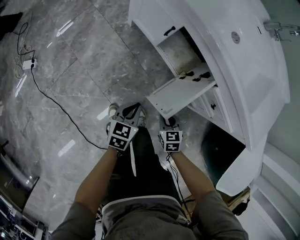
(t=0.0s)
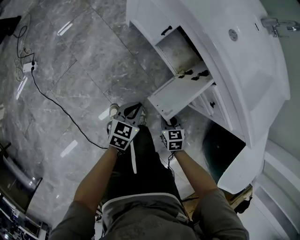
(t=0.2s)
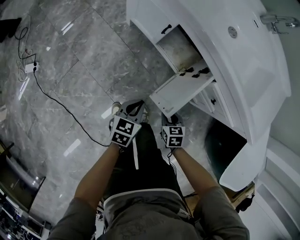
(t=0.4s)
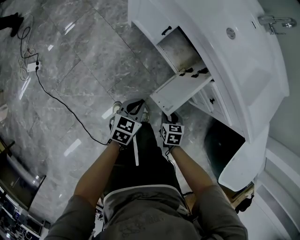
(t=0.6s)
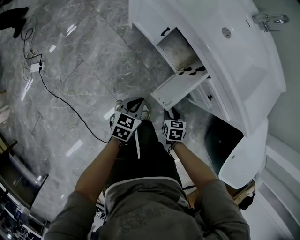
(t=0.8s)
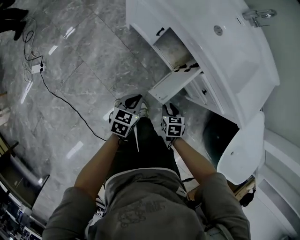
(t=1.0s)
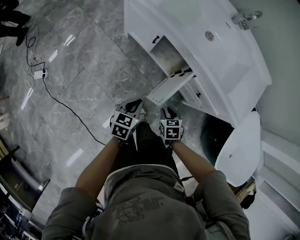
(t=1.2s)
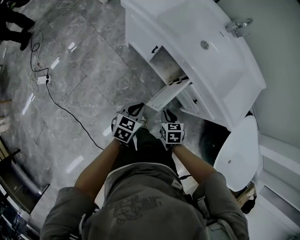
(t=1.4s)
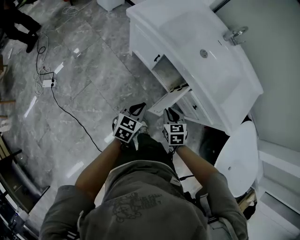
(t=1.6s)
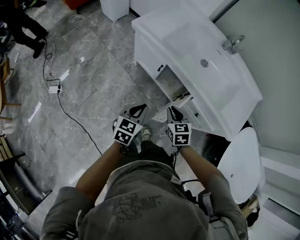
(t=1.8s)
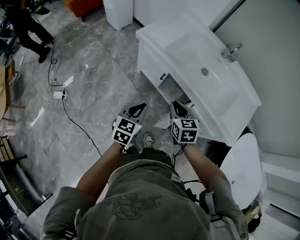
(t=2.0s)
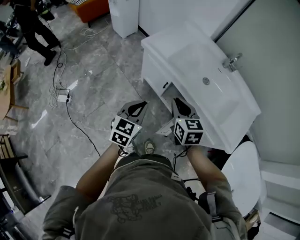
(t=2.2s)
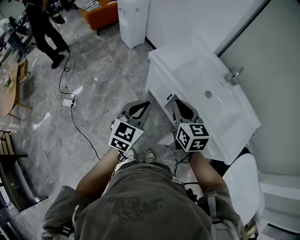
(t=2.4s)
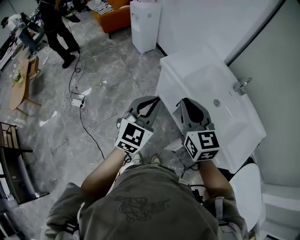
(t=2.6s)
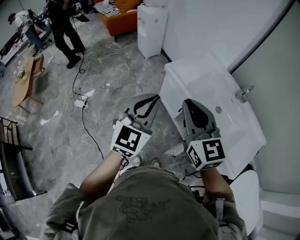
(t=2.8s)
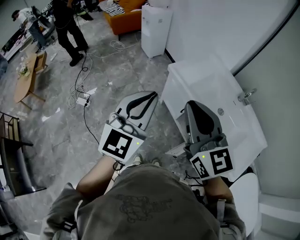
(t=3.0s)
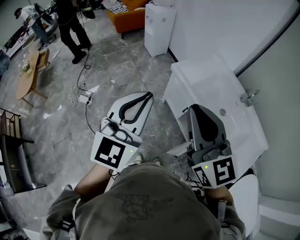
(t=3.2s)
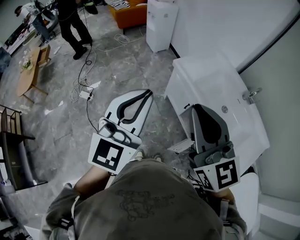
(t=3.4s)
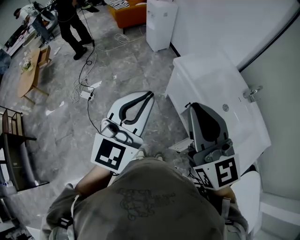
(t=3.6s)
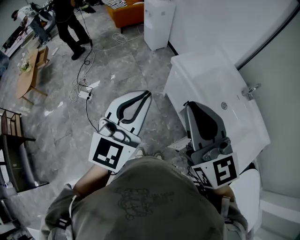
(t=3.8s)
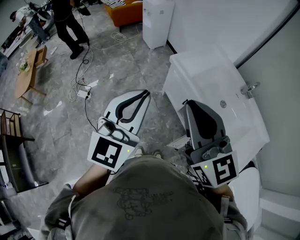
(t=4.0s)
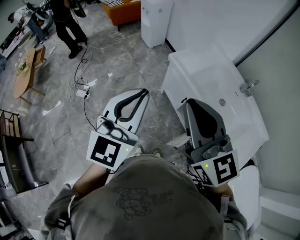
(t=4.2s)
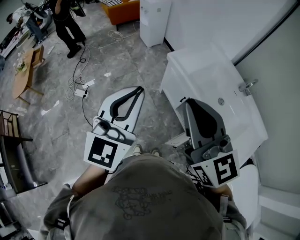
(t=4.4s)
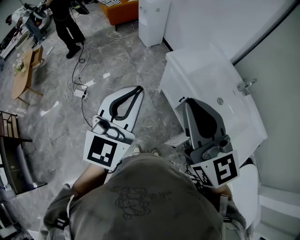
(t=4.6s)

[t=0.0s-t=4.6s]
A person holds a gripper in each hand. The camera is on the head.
t=0.0s to t=1.6s: The grippers both shift upward by roughly 25 cm.
t=1.6s to t=3.0s: Both grippers travel together upward, approximately 50 cm. The left gripper angles its fingers upward, by roughly 40 degrees; the right gripper tilts its fingers some 50 degrees upward.
t=3.0s to t=4.6s: The grippers move only a little.

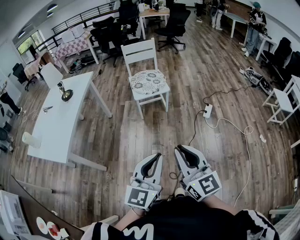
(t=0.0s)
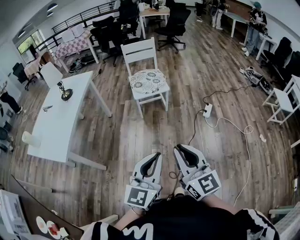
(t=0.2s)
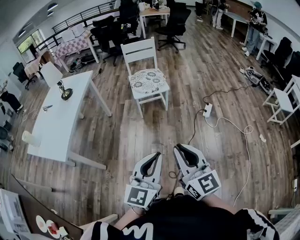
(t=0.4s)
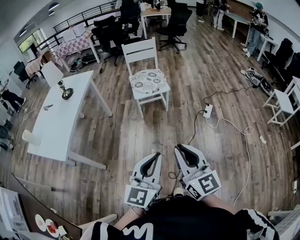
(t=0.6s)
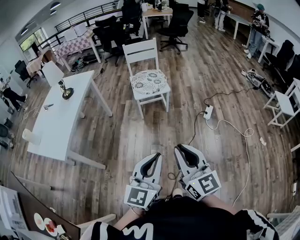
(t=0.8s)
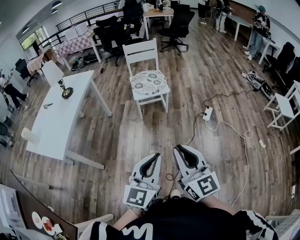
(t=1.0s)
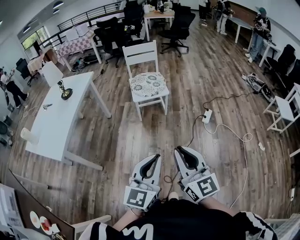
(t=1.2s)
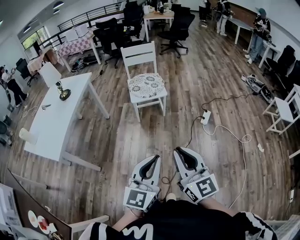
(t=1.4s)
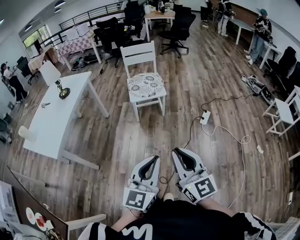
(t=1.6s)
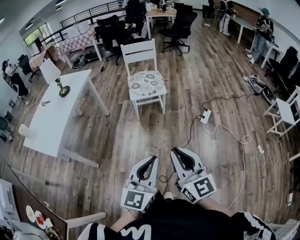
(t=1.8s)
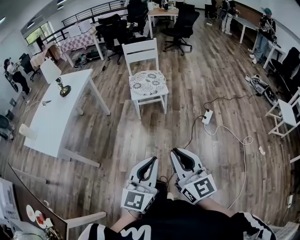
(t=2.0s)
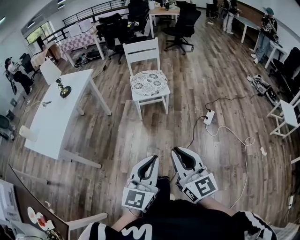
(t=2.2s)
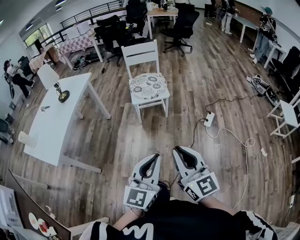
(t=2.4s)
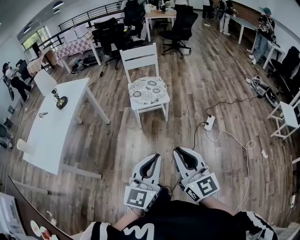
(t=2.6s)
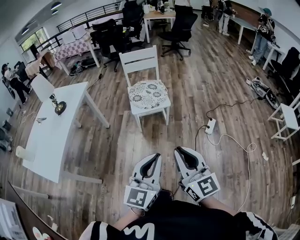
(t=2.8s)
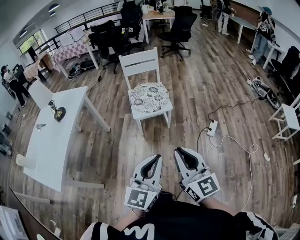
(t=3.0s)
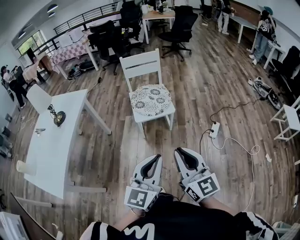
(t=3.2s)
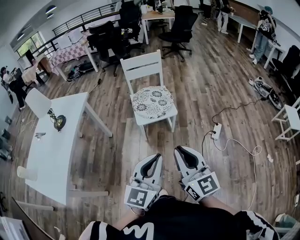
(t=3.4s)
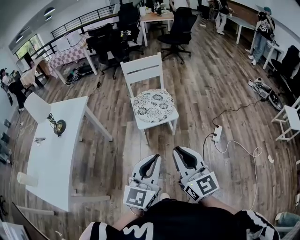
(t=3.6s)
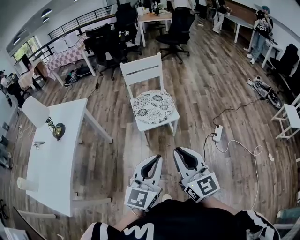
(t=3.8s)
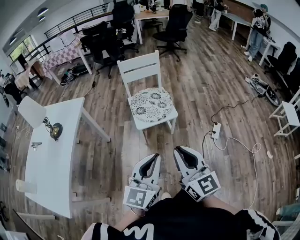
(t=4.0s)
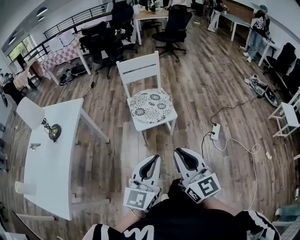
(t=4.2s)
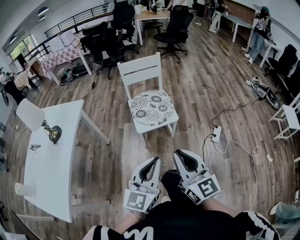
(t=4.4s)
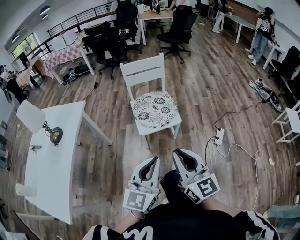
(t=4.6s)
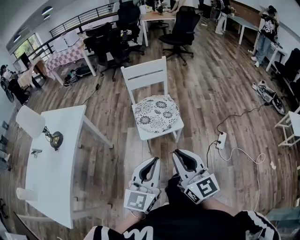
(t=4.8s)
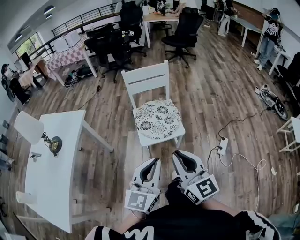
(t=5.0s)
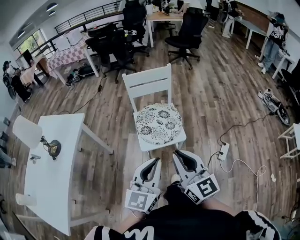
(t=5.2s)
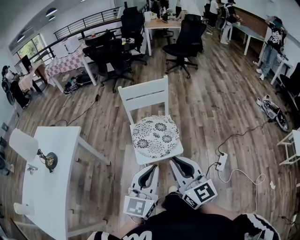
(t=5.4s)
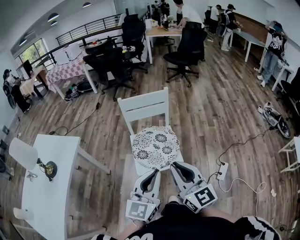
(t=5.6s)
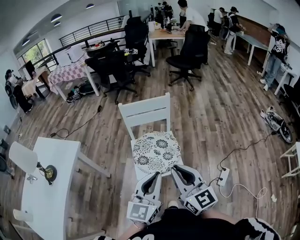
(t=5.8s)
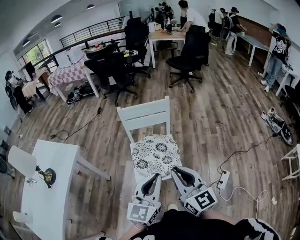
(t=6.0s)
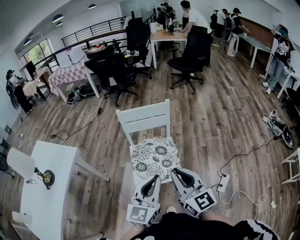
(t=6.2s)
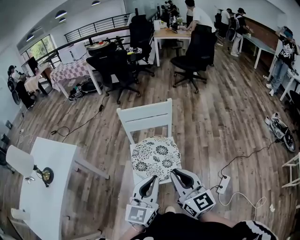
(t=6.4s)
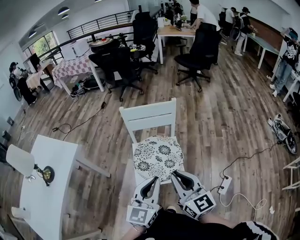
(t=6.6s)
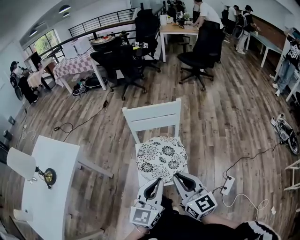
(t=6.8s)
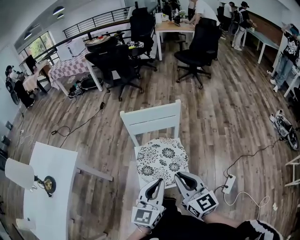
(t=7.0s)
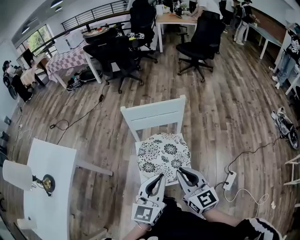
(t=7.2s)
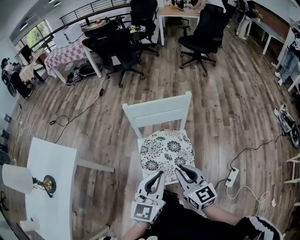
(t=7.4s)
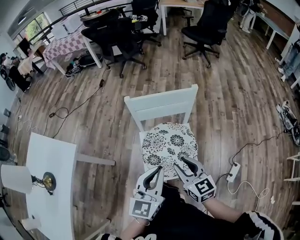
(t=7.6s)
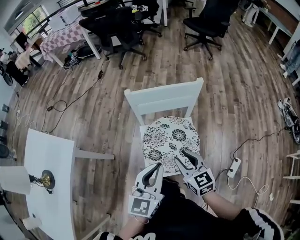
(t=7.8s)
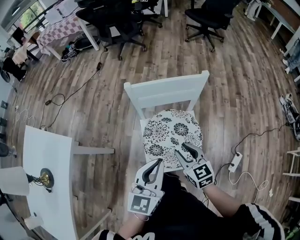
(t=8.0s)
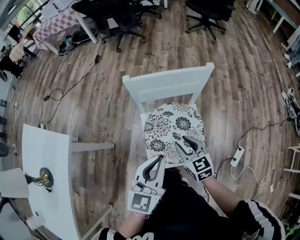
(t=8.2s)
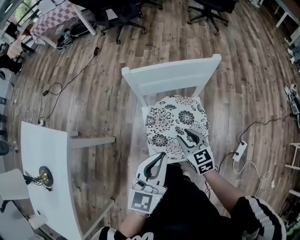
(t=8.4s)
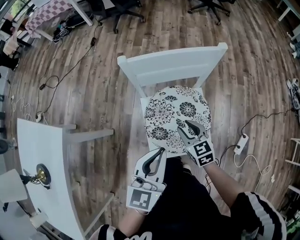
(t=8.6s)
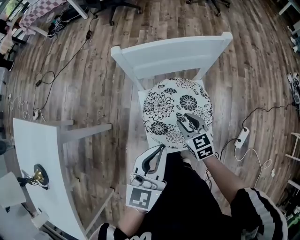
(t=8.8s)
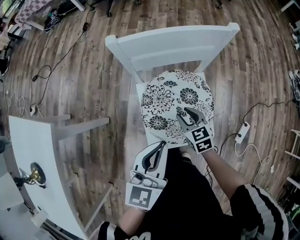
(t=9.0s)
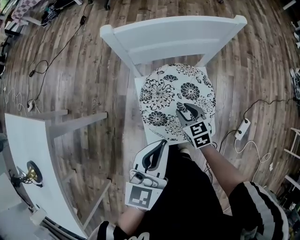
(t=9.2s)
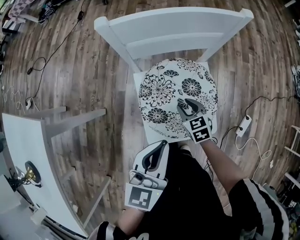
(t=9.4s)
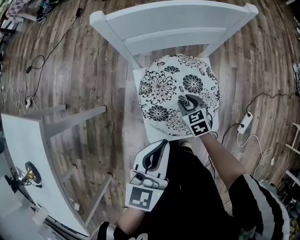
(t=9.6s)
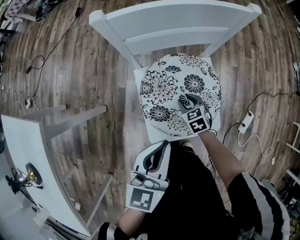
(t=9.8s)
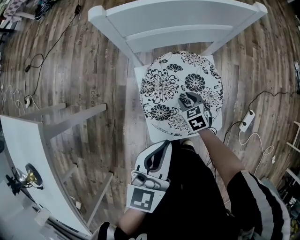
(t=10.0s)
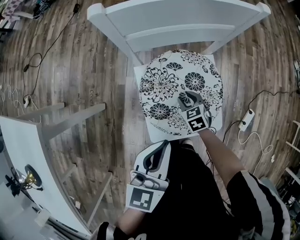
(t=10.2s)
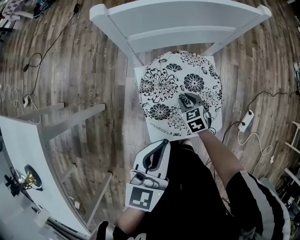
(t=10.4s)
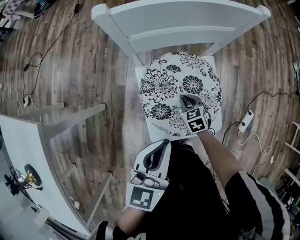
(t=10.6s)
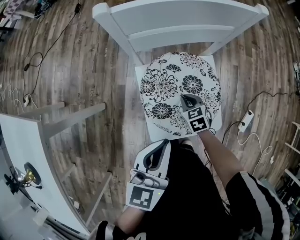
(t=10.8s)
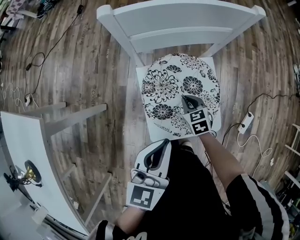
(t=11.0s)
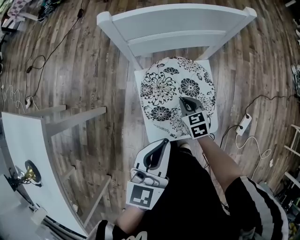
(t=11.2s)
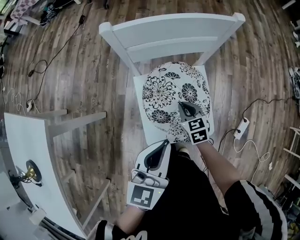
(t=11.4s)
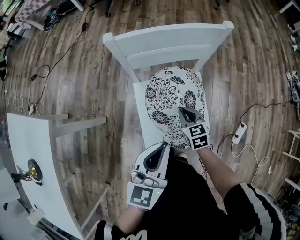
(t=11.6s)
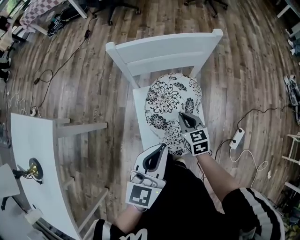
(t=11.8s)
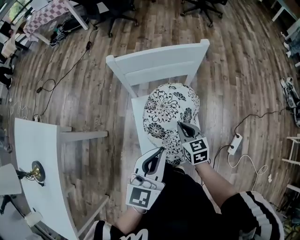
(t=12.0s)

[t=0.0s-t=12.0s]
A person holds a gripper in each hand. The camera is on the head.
t=0.0s to t=1.6s: The two grippers go approximately 5 cm to the right.
t=1.6s to t=3.0s: The two grippers go roughly 20 cm forward.
t=3.0s to t=4.4s: The two grippers go some 15 cm forward and to the left.
t=4.4s to t=6.0s: The two grippers go about 30 cm forward.
t=6.0s to t=7.6s: The grippers both shift forward and downward by roughly 20 cm. The right gripper swivels some 20 degrees, and opens its fingers.
t=7.6s to t=9.0s: The left gripper is displaced downward by some 10 cm. The right gripper moves downward, roughly 25 cm, and swivels roughly 20 degrees.
t=9.0s to t=10.4s: The left gripper goes roughly 5 cm downward, while the right gripper shifts about 15 cm downward.
t=10.4s to t=12.0s: The left gripper shifts about 10 cm upward and to the right. Meanwhile the right gripper moves upward, about 20 cm, swivels about 20 degrees, and closes up.

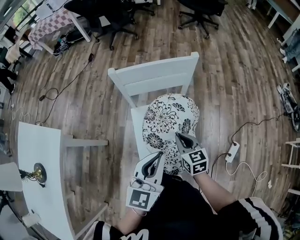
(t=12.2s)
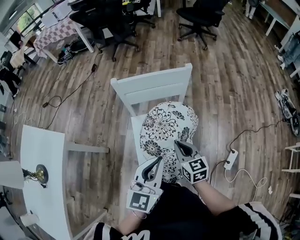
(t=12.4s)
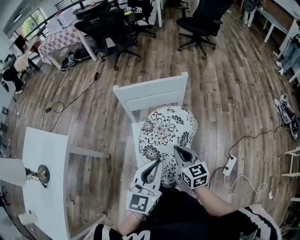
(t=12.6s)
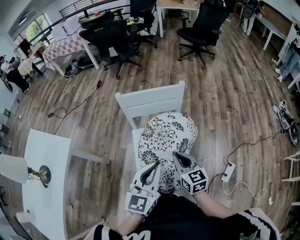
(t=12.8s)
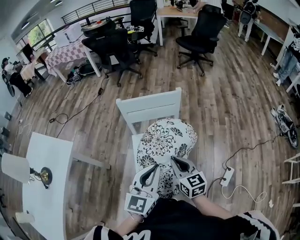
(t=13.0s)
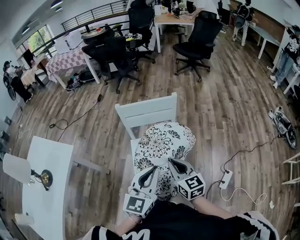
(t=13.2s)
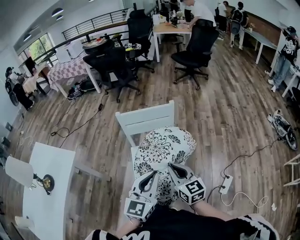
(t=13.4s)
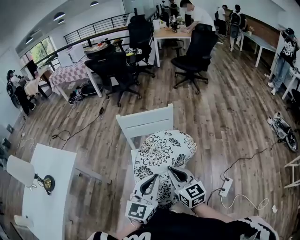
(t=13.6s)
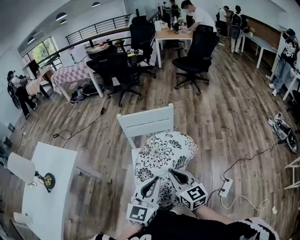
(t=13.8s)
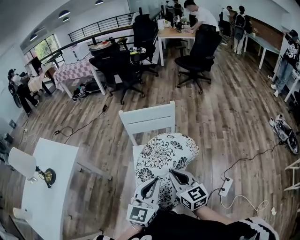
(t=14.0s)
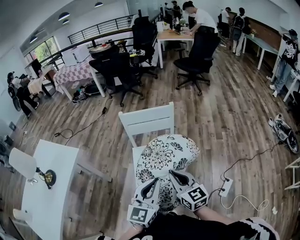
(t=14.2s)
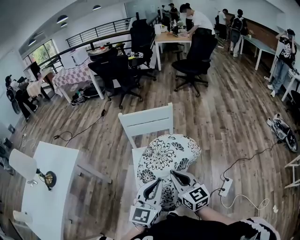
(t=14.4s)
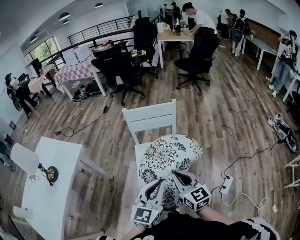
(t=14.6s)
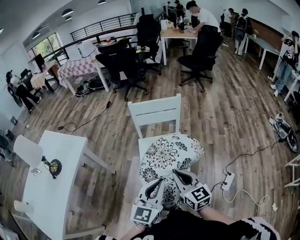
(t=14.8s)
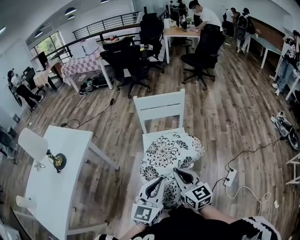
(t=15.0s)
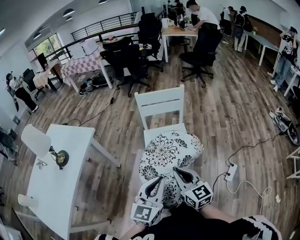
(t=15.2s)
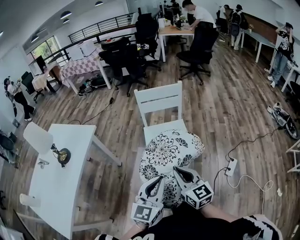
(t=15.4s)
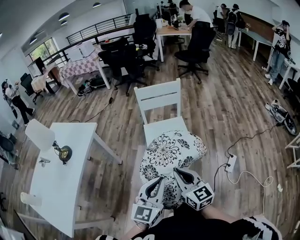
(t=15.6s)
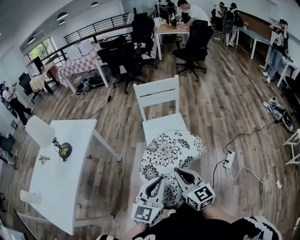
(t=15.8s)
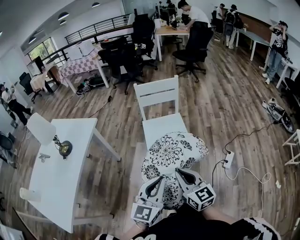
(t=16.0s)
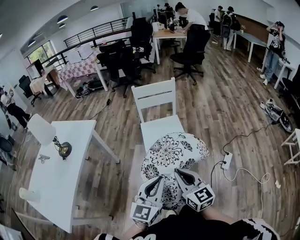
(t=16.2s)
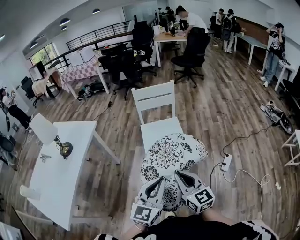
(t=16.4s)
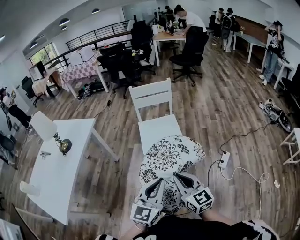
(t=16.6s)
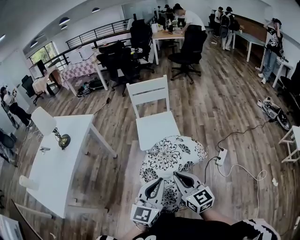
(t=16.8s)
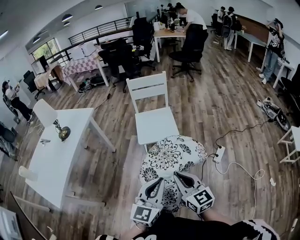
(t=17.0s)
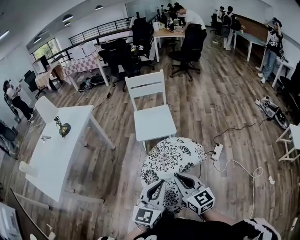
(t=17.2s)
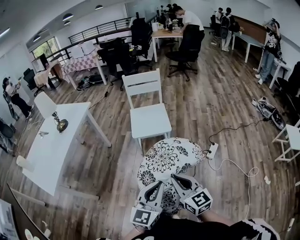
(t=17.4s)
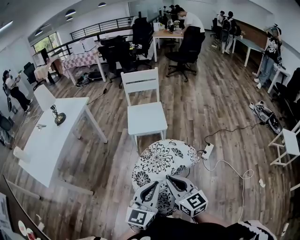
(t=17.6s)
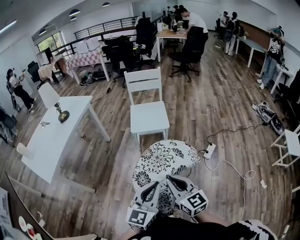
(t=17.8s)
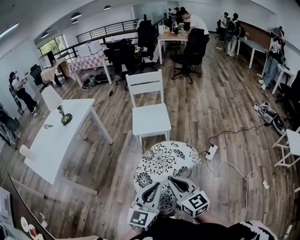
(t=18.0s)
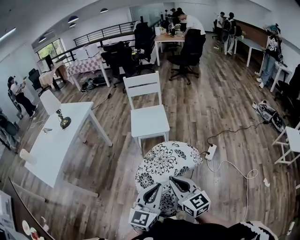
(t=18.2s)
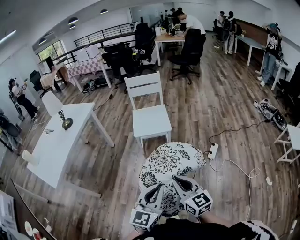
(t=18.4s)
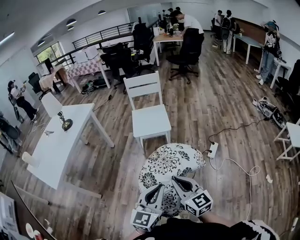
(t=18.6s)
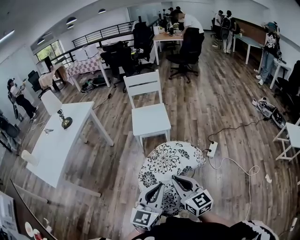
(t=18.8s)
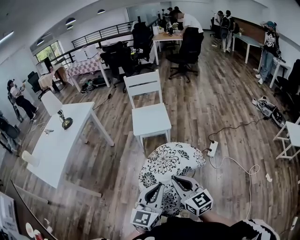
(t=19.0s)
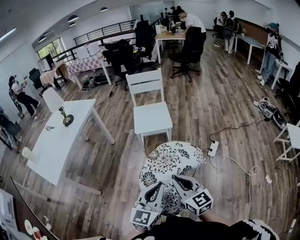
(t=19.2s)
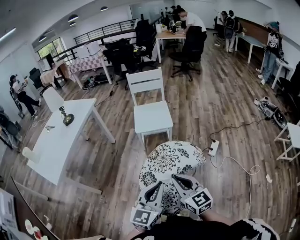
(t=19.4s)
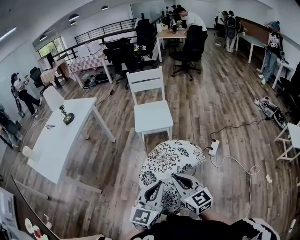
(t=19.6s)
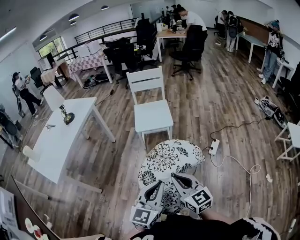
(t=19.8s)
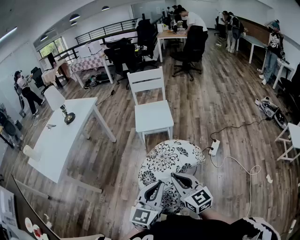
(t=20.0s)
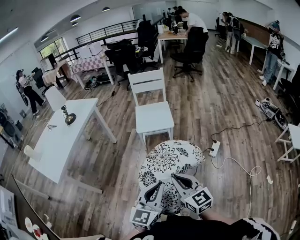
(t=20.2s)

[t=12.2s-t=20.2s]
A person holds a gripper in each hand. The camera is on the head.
t=12.2s to t=13.8s: The right gripper goes approximately 25 cm upward and backward, and changes its angle by some 20 degrees. Meanwhile the left gripper heads backward, upward and to the right, covering about 15 cm.
t=13.8s to t=15.4s: The grippers both shift backward and to the left by about 20 cm.
t=15.4s to t=17.0s: Both grippers move backward, approximately 25 cm.
t=17.0s to t=18.6s: The two grippers go about 15 cm backward.
t=18.6s to t=20.2s: The grippers move only a little.
